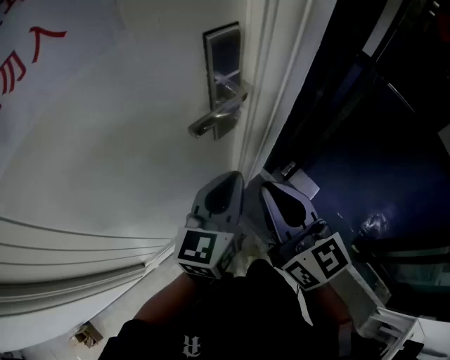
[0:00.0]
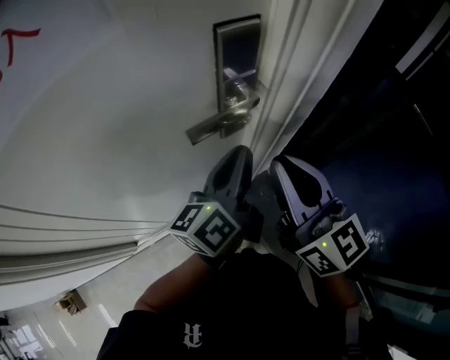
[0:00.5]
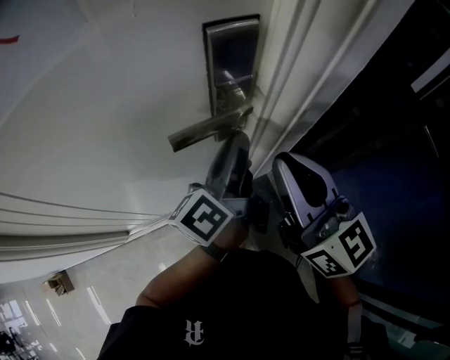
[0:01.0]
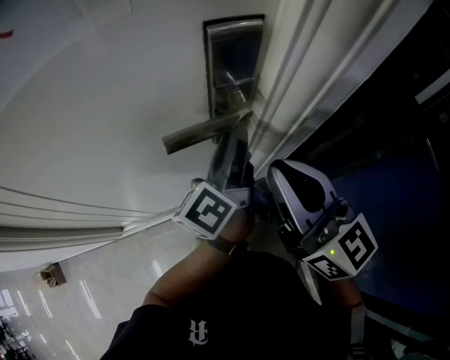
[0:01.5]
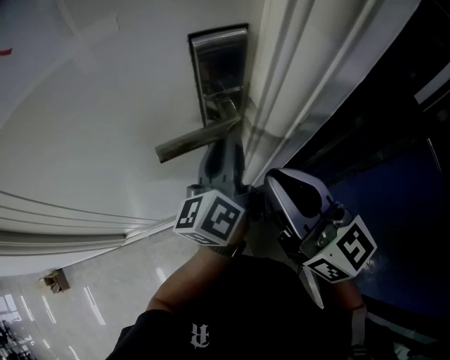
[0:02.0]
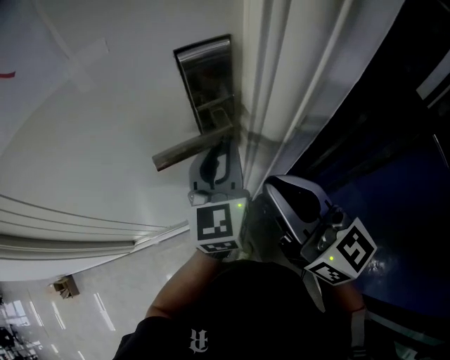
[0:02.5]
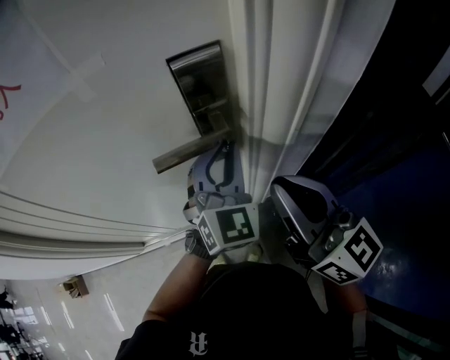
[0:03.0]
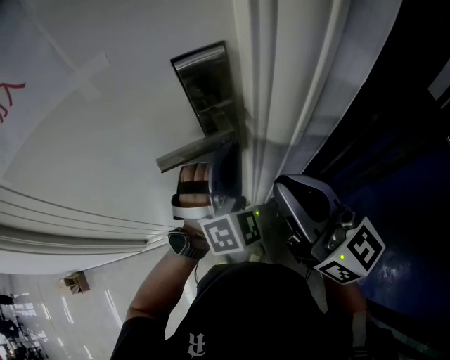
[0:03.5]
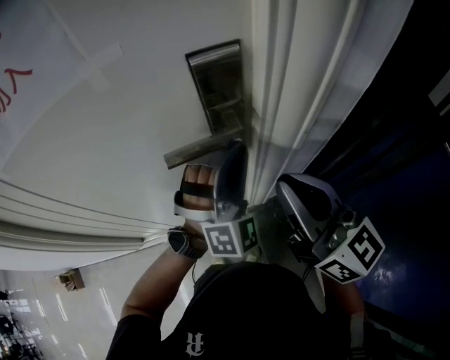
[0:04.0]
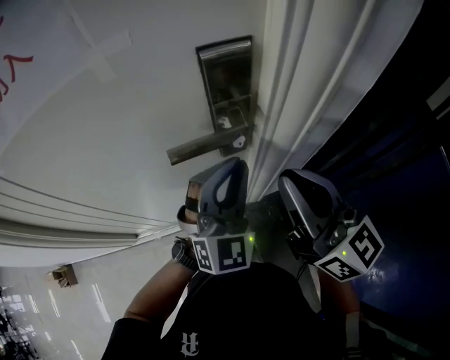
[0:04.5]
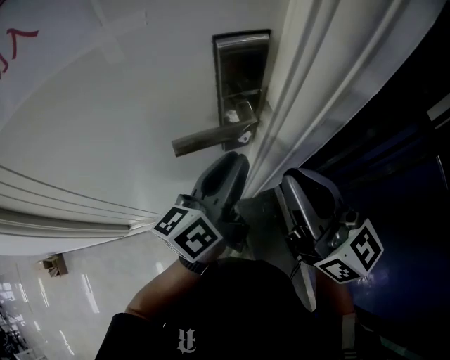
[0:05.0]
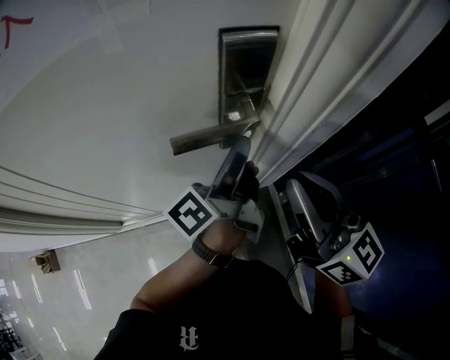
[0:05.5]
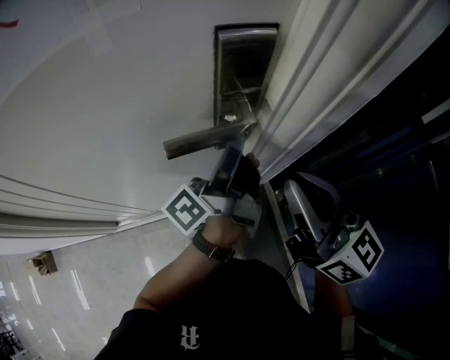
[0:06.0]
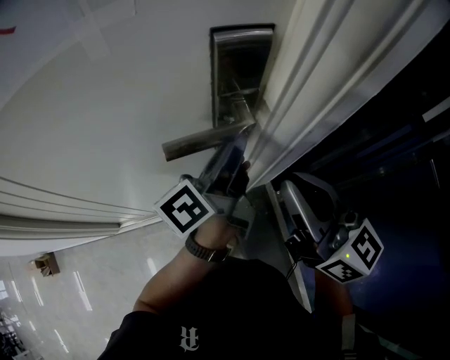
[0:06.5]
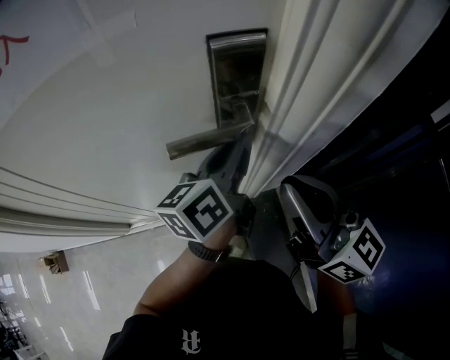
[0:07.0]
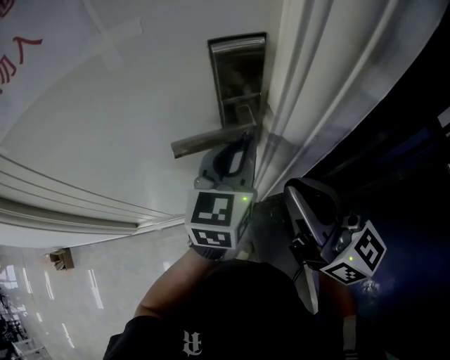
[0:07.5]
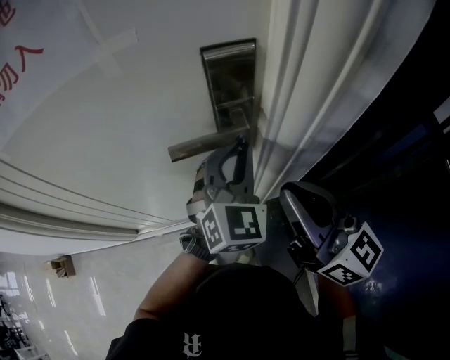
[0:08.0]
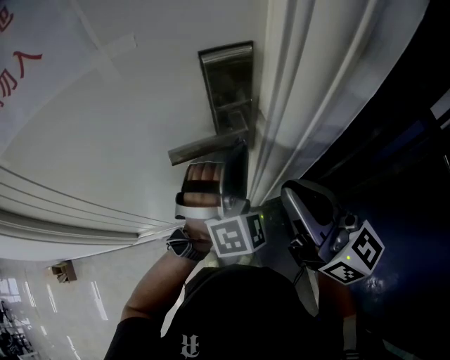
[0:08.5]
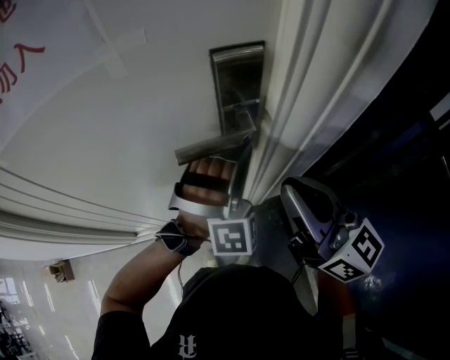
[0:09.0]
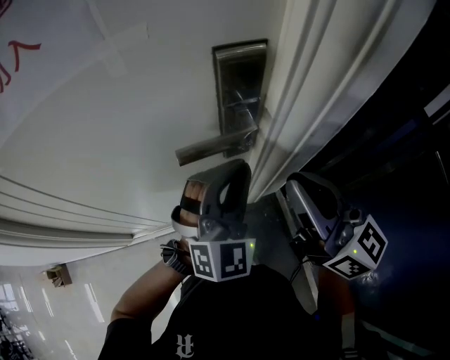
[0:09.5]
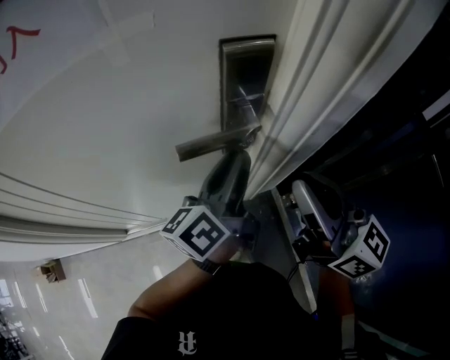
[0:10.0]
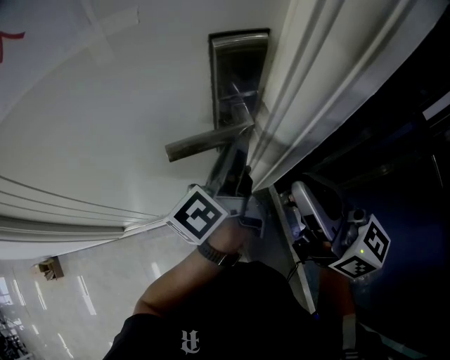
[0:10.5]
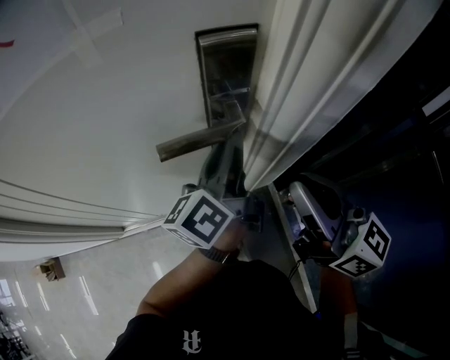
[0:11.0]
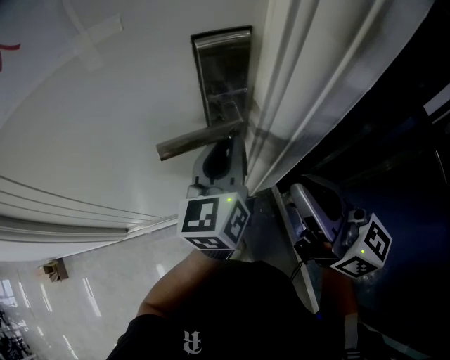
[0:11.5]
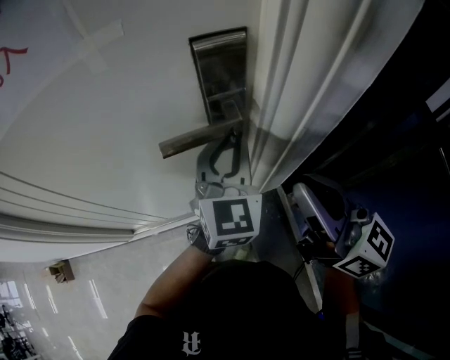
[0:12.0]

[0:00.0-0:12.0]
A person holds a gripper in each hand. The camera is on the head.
0:00.0 to 0:02.0: The right gripper shifts by approximately 10 cm, and rotates some 30 degrees. Meanwhile the left gripper moves about 15 cm, and changes its angle by roughly 40 degrees.
0:02.0 to 0:04.0: The left gripper twists some 110 degrees clockwise, seen from behind.
0:04.0 to 0:06.0: The left gripper rolls counterclockwise, seen from behind, by approximately 150 degrees.
0:06.0 to 0:08.0: The left gripper rotates around the line of its fingers by some 110 degrees, clockwise from behind.
0:08.0 to 0:10.0: The left gripper twists approximately 80 degrees counterclockwise, seen from behind.
0:10.0 to 0:12.0: The left gripper rolls clockwise, seen from behind, by approximately 70 degrees.

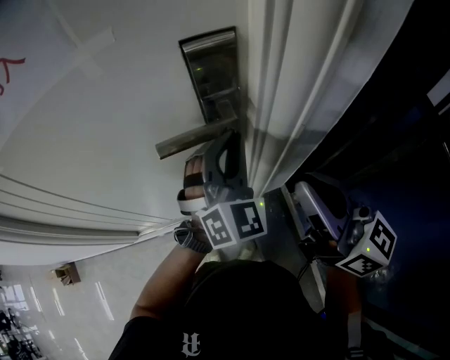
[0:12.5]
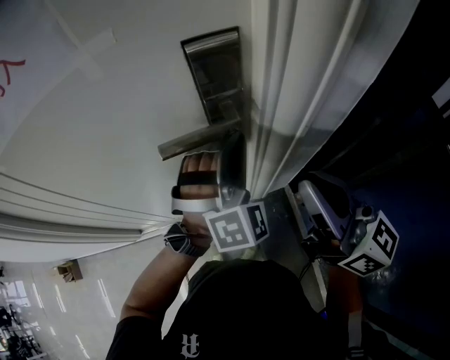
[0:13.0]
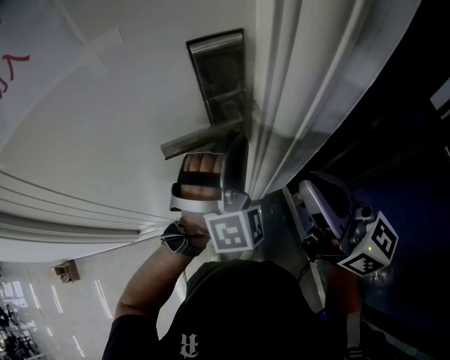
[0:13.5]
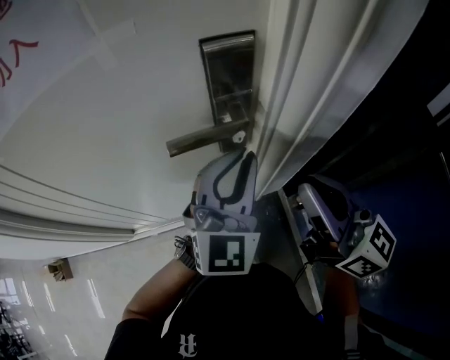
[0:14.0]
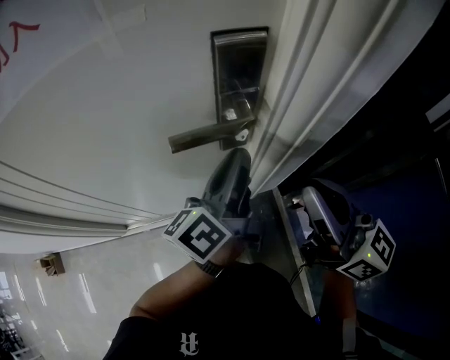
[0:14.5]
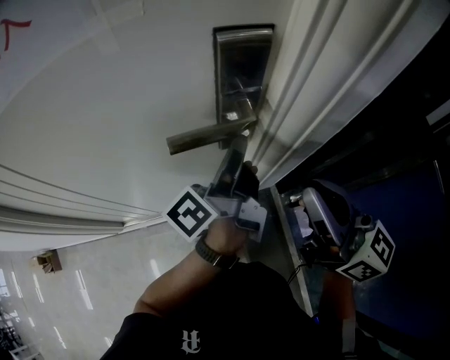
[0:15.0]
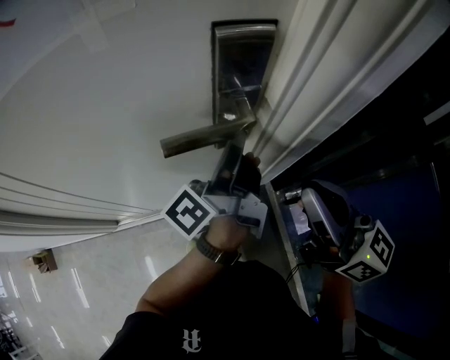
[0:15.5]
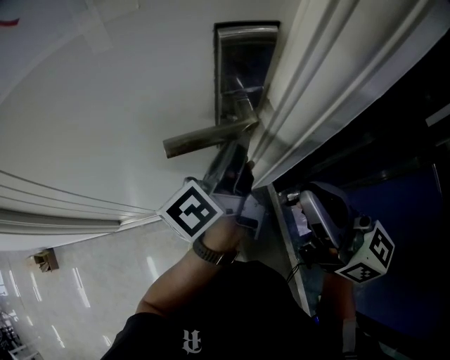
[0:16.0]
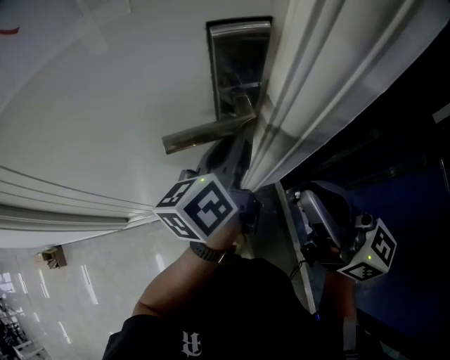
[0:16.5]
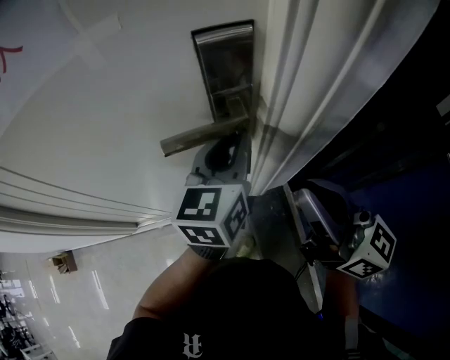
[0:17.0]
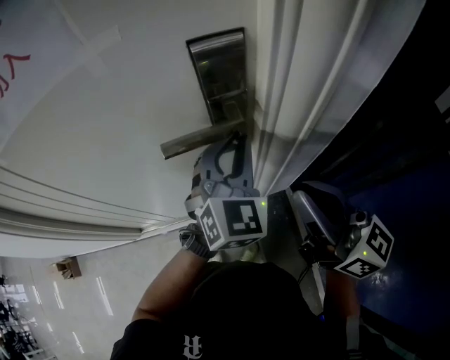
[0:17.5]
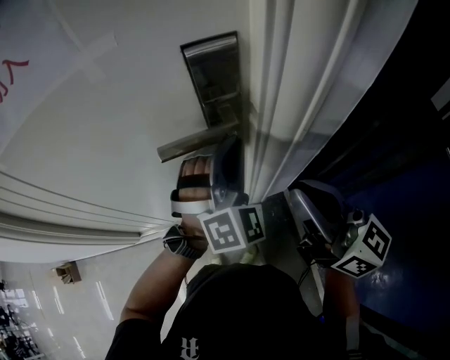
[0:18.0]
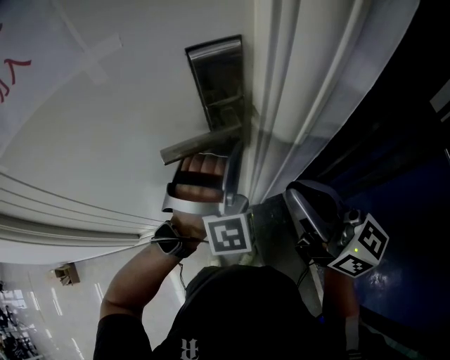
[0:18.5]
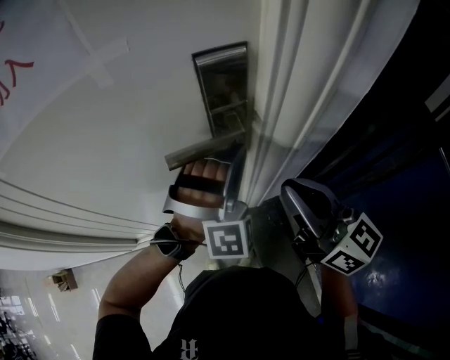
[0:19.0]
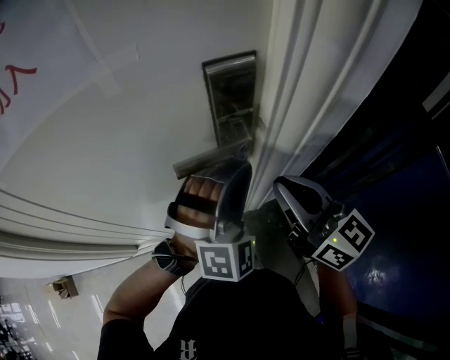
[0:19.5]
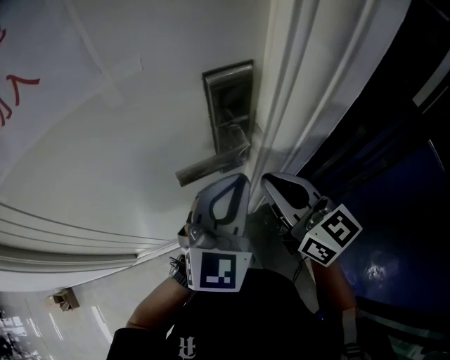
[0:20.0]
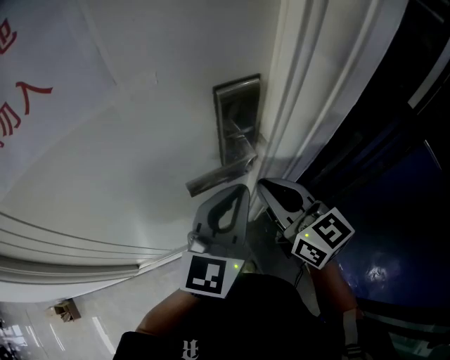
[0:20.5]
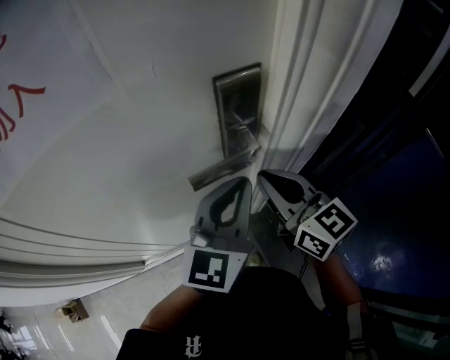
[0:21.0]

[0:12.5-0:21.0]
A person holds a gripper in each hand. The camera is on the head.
0:12.5 to 0:14.5: The left gripper rotates around the line of its fingers by approximately 100 degrees, counterclockwise from behind.
0:16.5 to 0:19.0: The left gripper rotates around the line of its fingers by about 130 degrees, clockwise from behind.
0:19.0 to 0:21.0: The right gripper shifts some 10 cm forward and to the left. Meanwhile the left gripper ends up approximately 10 cm from where it was, and rotates around the line of its fingers by approximately 80 degrees, counterclockwise from behind.

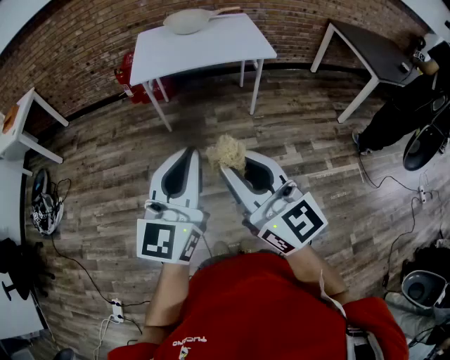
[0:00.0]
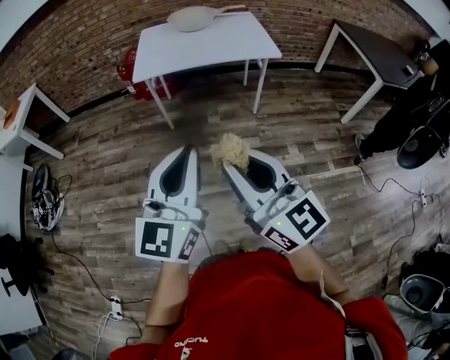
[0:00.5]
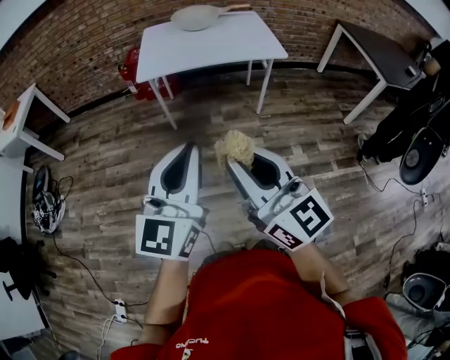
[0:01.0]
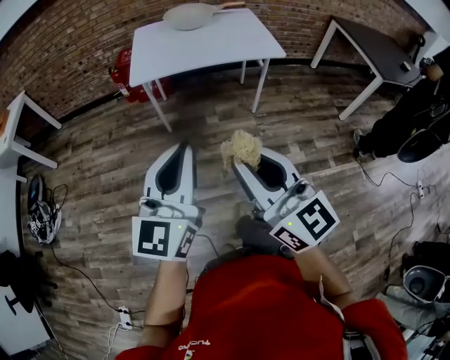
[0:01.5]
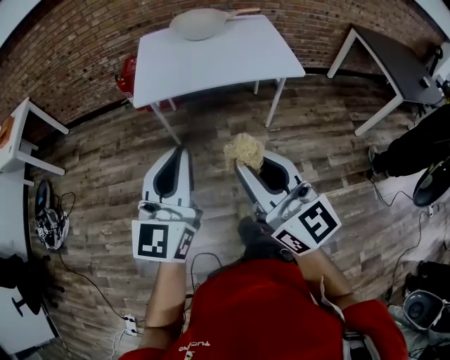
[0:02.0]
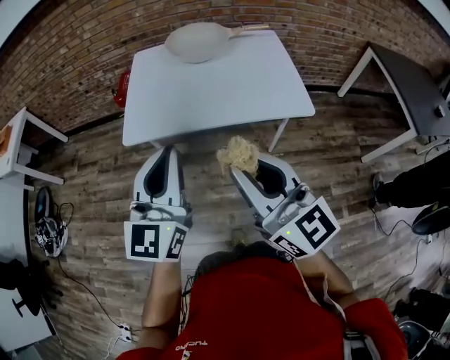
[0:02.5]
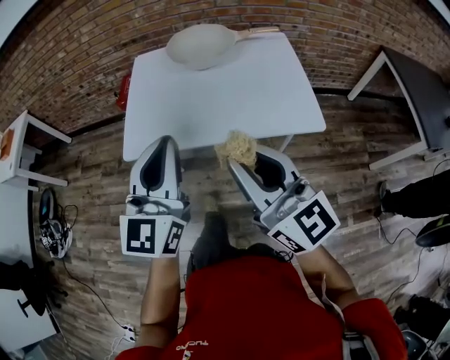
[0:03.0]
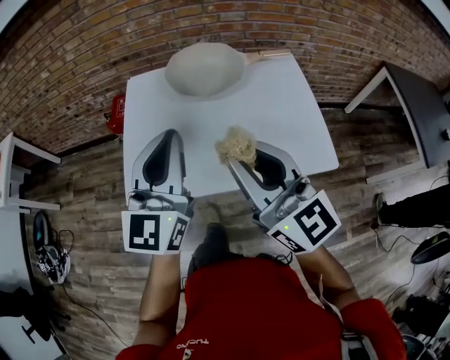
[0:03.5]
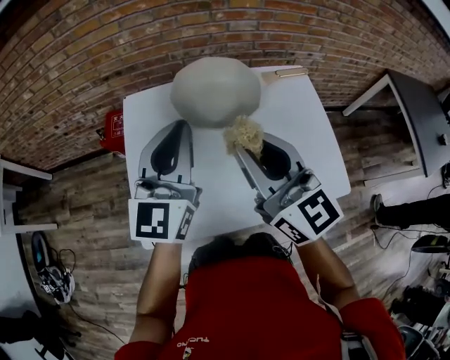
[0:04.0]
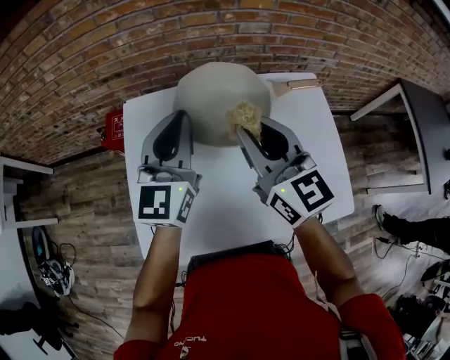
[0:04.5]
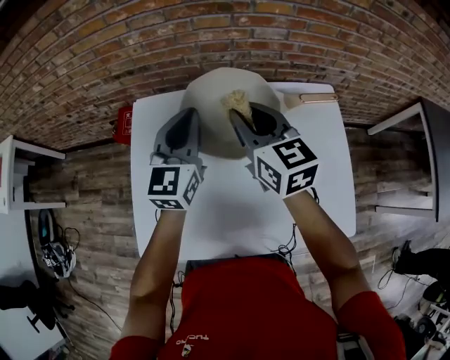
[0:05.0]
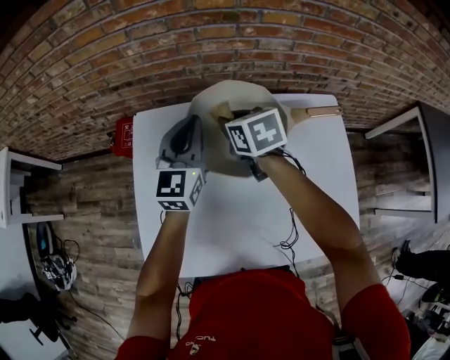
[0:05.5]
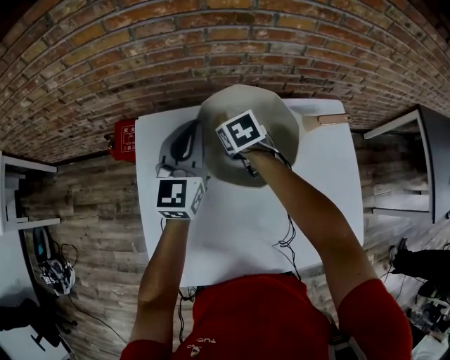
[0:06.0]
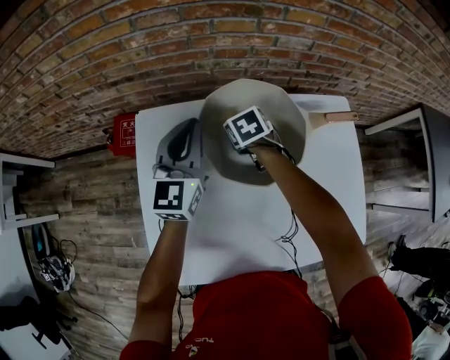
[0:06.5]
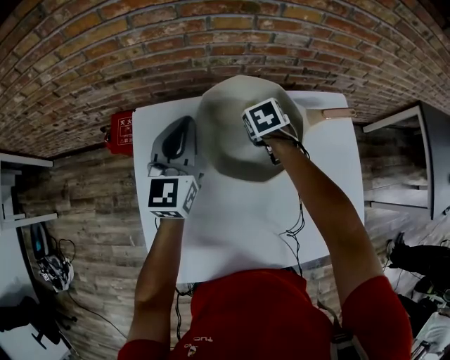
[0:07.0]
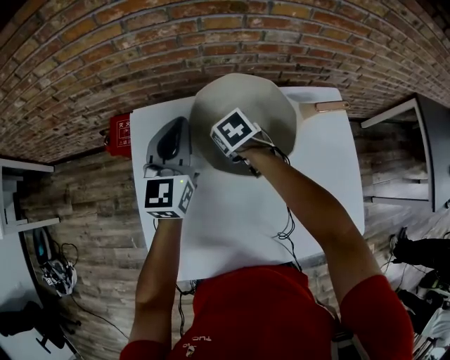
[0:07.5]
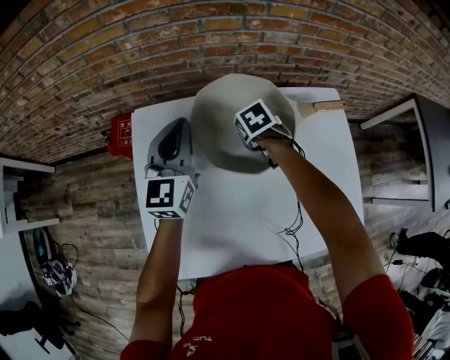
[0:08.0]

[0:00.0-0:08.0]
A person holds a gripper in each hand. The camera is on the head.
0:00.0 to 0:02.0: The grippers both shift forward by approximately 25 cm.
0:02.0 to 0:04.0: The pair of grippers is taken forward, some 70 cm.
0:04.0 to 0:06.0: The right gripper moves forward and downward, some 40 cm, and tips its fingers downward by about 60 degrees; the left gripper shifts roughly 25 cm forward and downward.
0:06.0 to 0:08.0: The right gripper swings left and right, roughly 10 cm each way, with 2 reversals.
